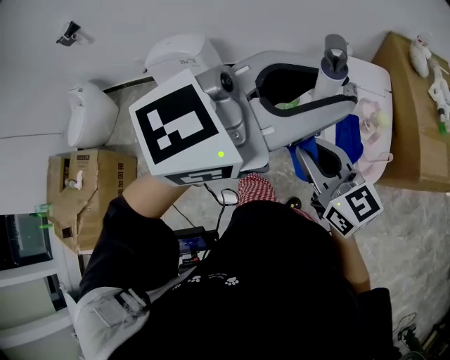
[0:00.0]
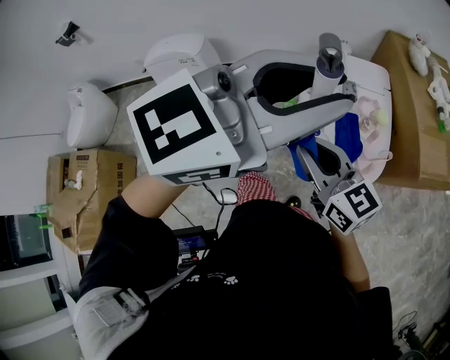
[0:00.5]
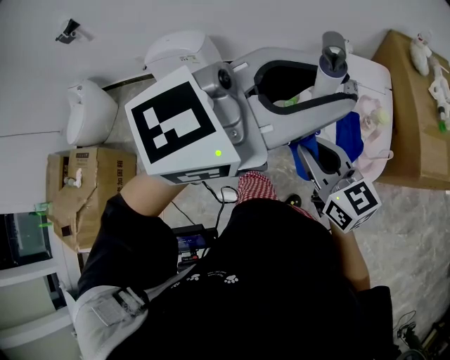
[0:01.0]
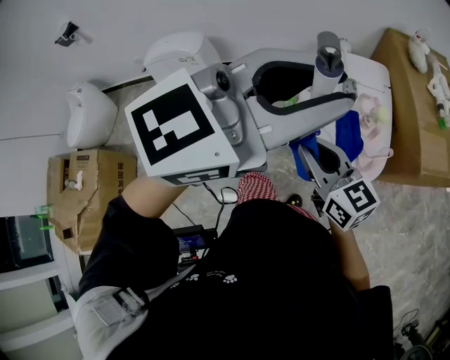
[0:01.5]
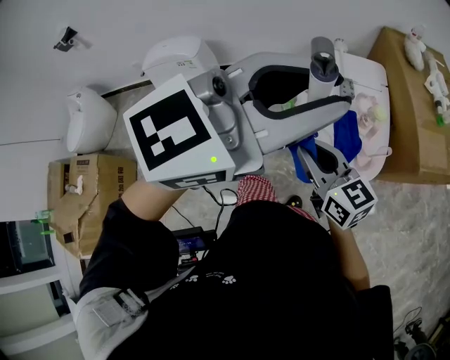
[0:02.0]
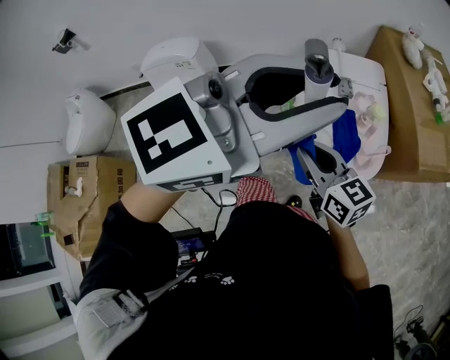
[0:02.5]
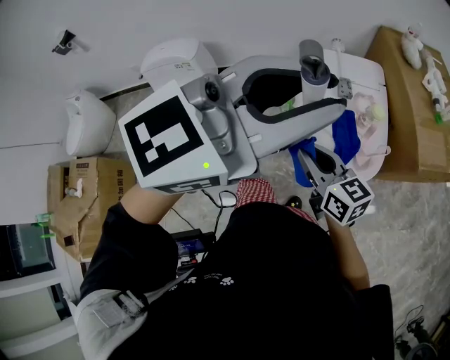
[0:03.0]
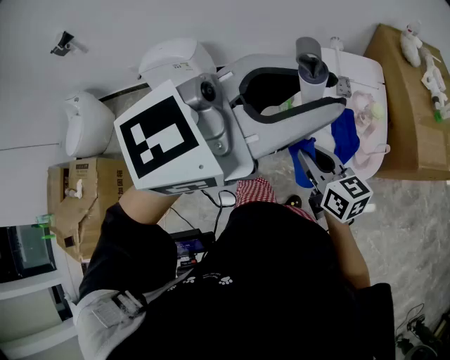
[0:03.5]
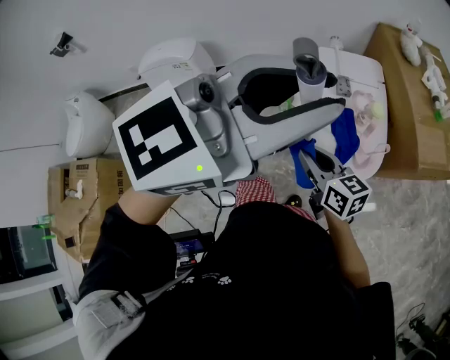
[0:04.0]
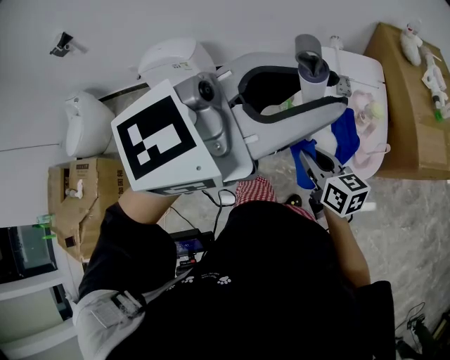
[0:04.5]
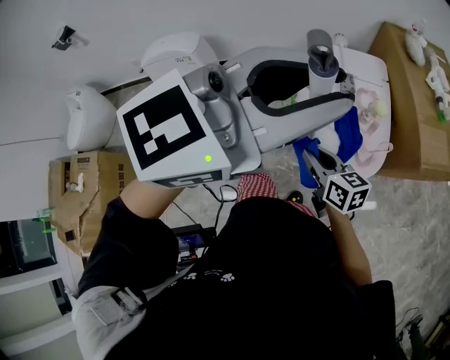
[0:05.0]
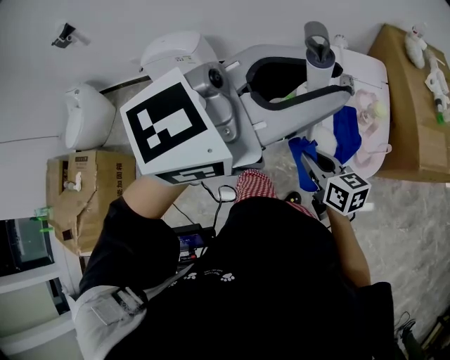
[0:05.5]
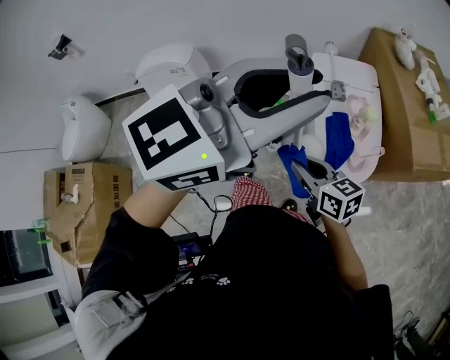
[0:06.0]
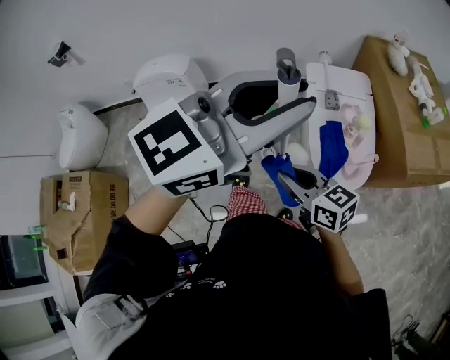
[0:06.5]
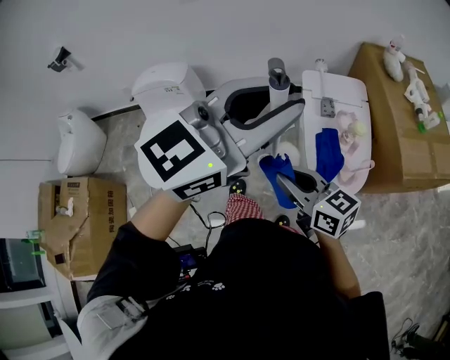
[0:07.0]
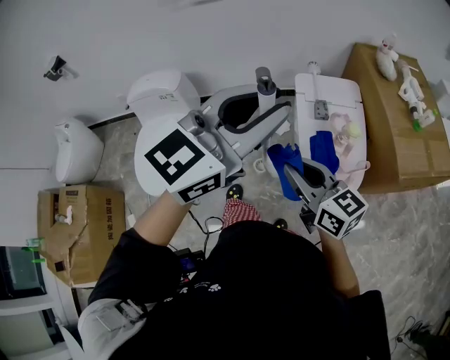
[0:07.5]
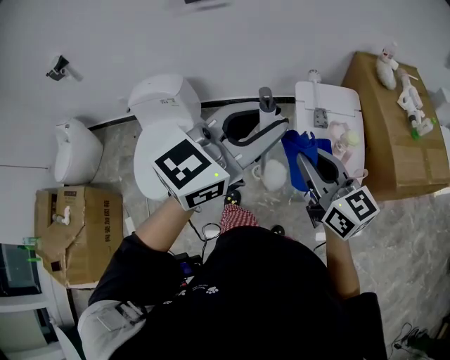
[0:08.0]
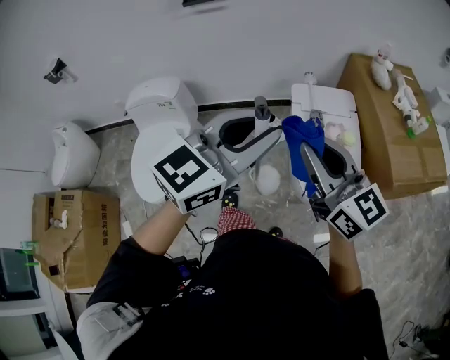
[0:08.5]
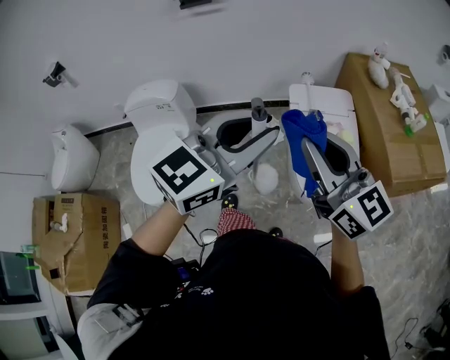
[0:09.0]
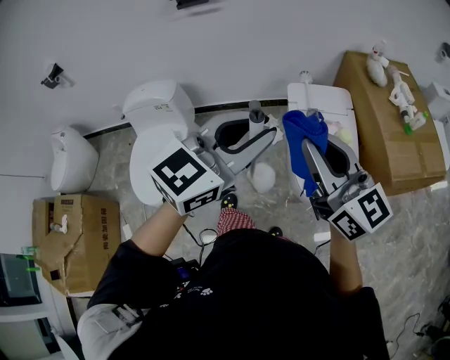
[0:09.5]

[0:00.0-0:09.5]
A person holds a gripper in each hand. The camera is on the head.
0:00.0 to 0:02.0: There are only small adjustments of the grippers.
0:02.0 to 0:04.0: The right gripper shifts roughly 5 cm downward.
0:04.0 to 0:05.5: There are only small adjustments of the grippers.
0:05.5 to 0:07.5: The right gripper shifts about 15 cm upward, and rotates some 20 degrees.
0:07.5 to 0:09.5: The right gripper shifts about 15 cm upward, and changes its angle by about 20 degrees.

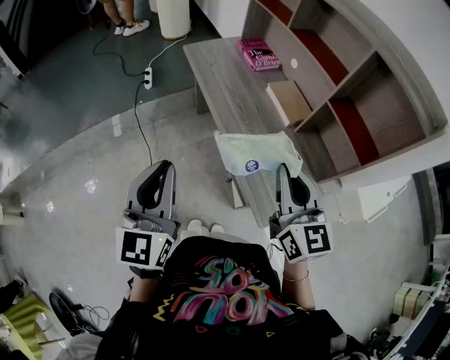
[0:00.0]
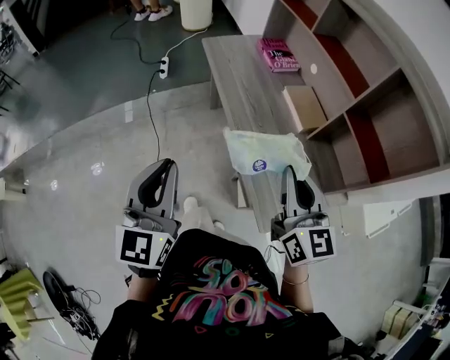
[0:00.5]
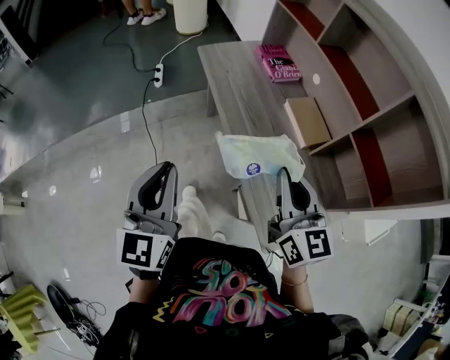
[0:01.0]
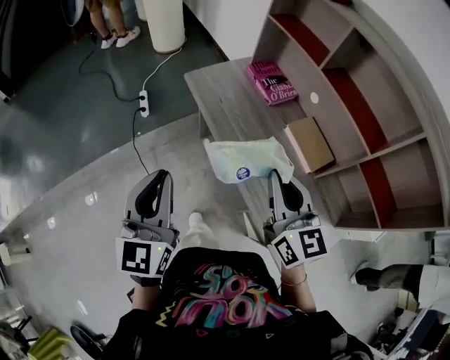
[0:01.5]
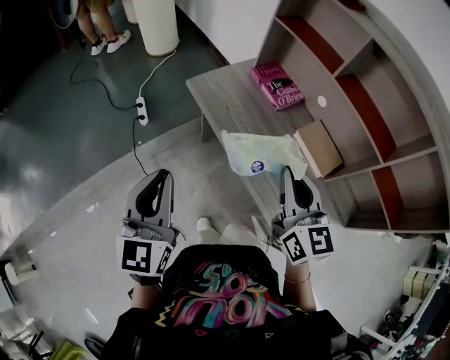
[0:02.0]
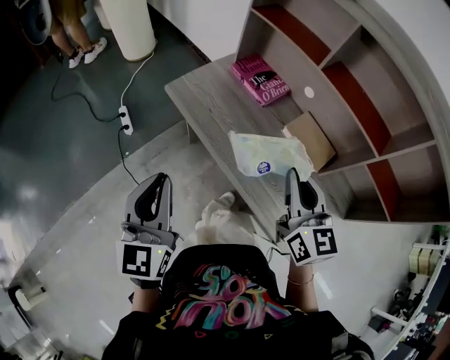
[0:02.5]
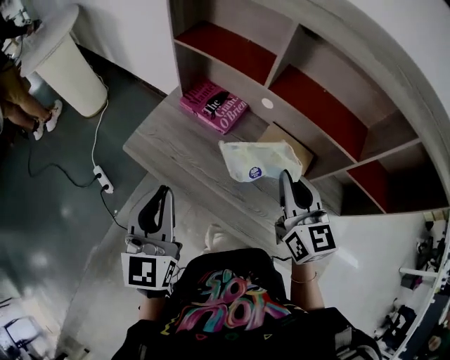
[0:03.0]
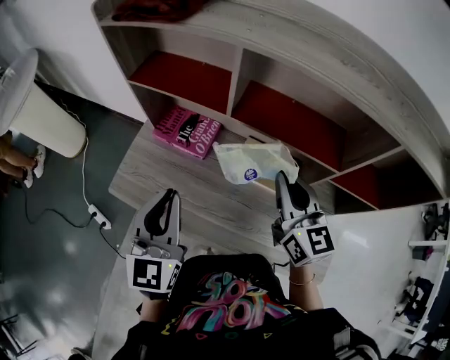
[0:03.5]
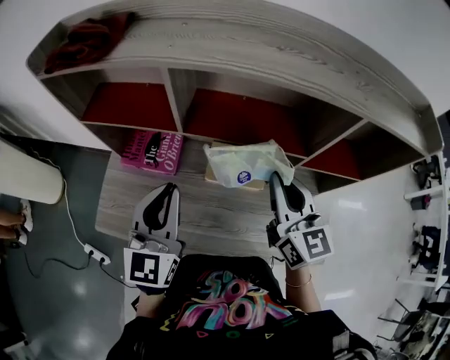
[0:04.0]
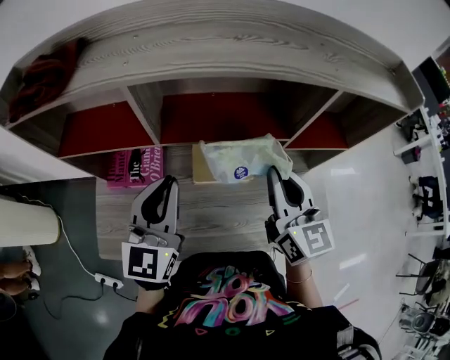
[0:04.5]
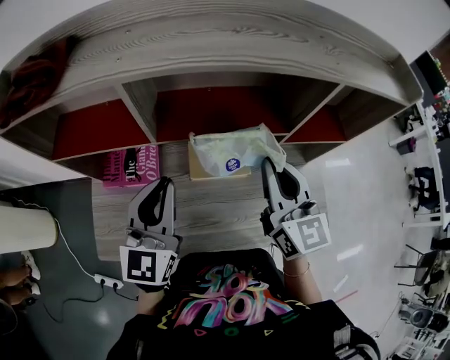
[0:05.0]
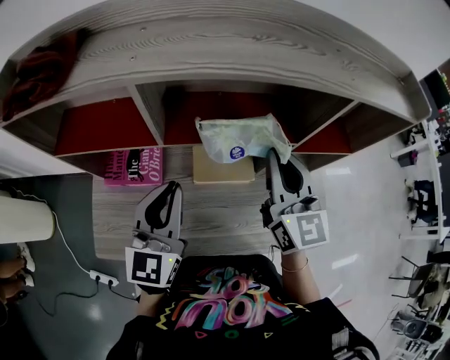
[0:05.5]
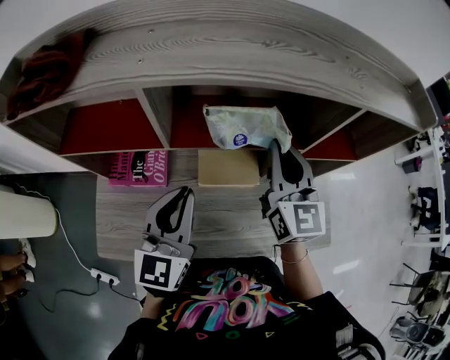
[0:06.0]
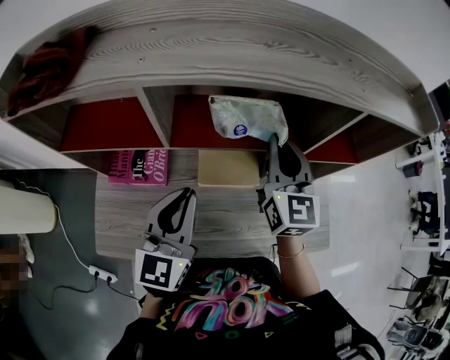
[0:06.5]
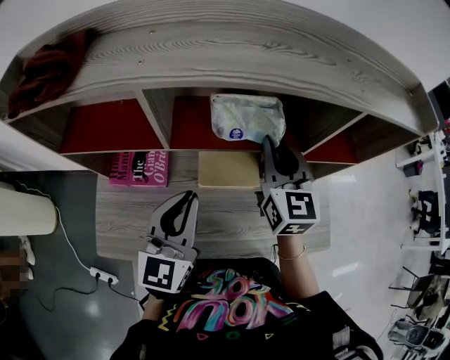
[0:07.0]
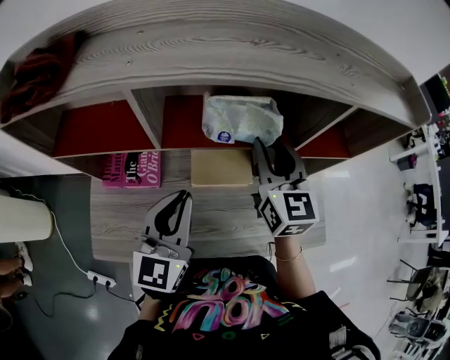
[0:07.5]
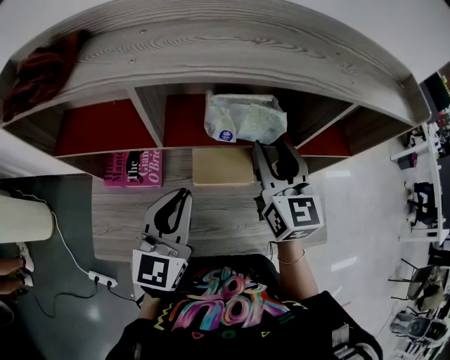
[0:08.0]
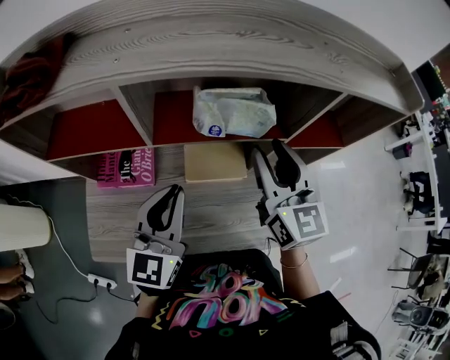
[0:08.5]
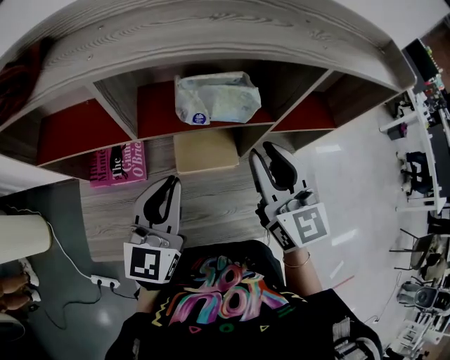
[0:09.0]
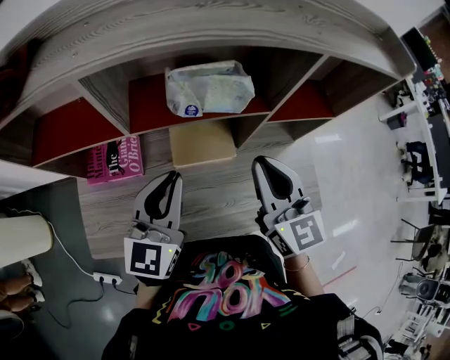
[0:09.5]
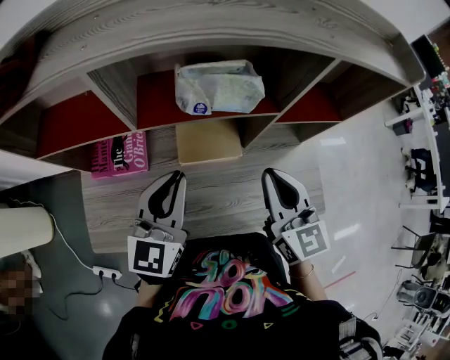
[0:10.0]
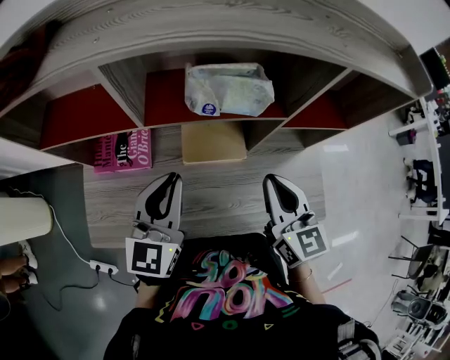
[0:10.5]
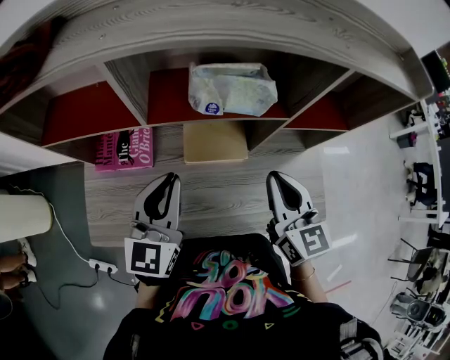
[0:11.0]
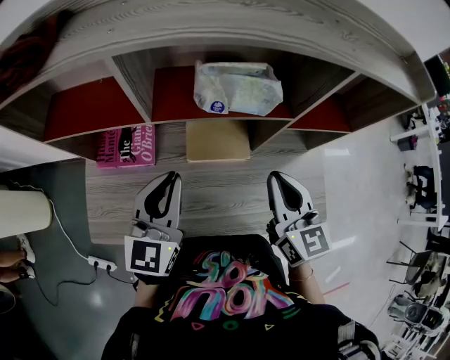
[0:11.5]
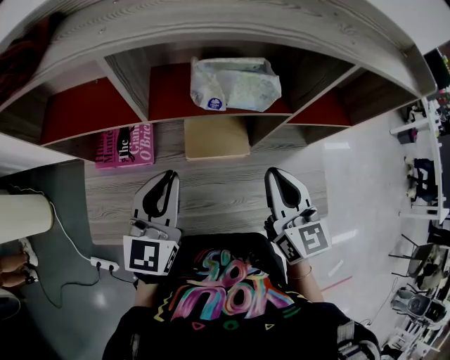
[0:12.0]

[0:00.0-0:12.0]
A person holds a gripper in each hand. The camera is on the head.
0:00.0 to 0:02.0: Both grippers travel together forward and to the left, roughly 35 cm.
0:02.0 to 0:04.0: The left gripper ends up some 40 cm from where it was, and rotates some 50 degrees, while the right gripper changes place by some 25 cm, and turns by approximately 40 degrees.
0:04.0 to 0:06.0: The right gripper travels forward by some 5 cm, and changes its angle by some 20 degrees. The left gripper moves about 5 cm.
0:06.0 to 0:08.0: The right gripper opens its fingers.
0:08.0 to 0:10.0: The right gripper travels backward by about 10 cm, and closes up.
0:10.0 to 0:12.0: The grippers make only small movements.

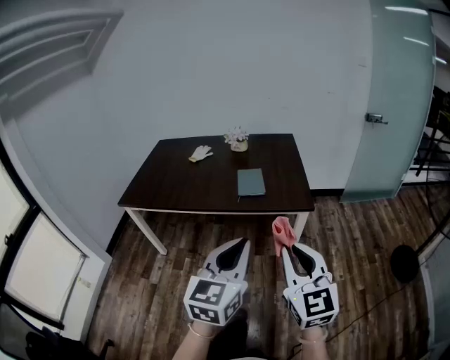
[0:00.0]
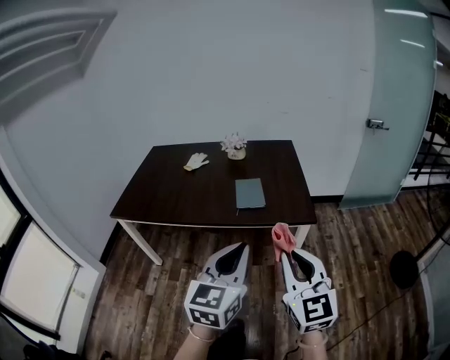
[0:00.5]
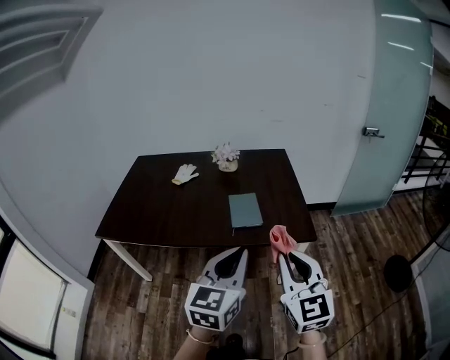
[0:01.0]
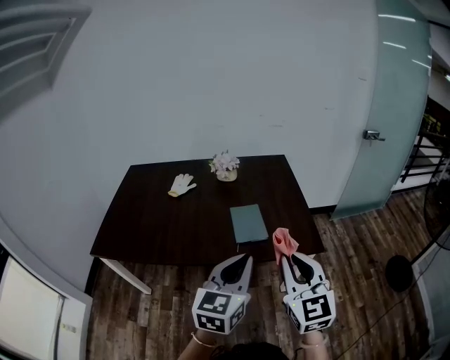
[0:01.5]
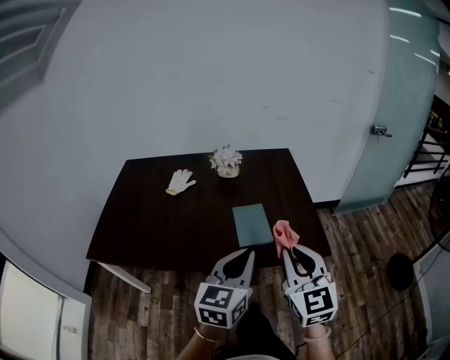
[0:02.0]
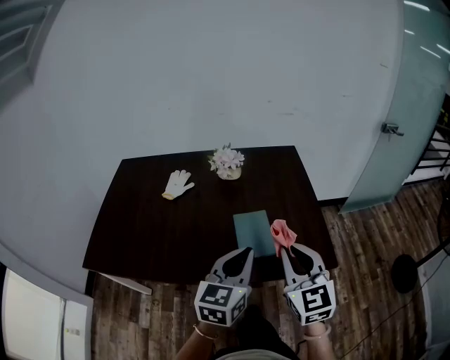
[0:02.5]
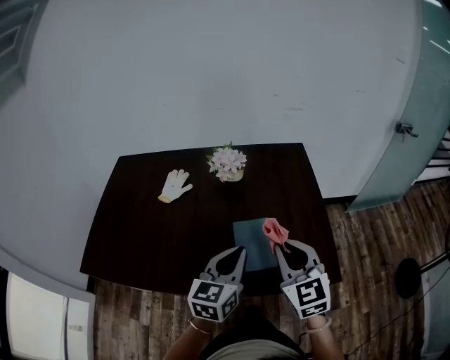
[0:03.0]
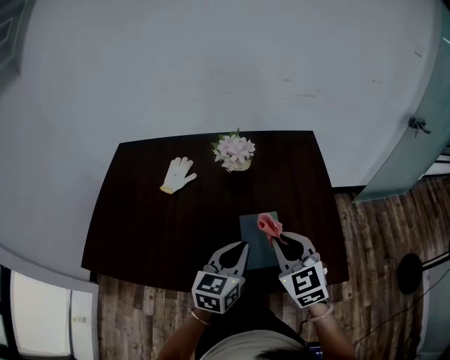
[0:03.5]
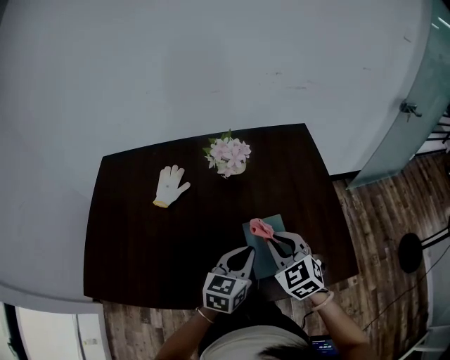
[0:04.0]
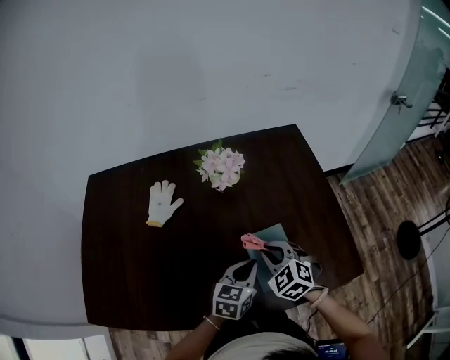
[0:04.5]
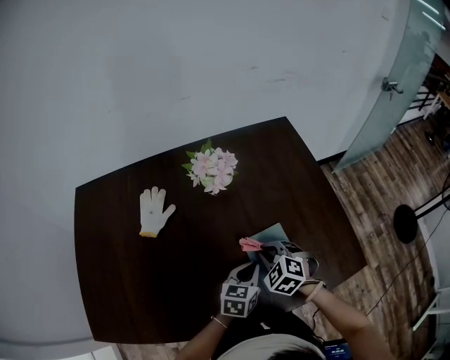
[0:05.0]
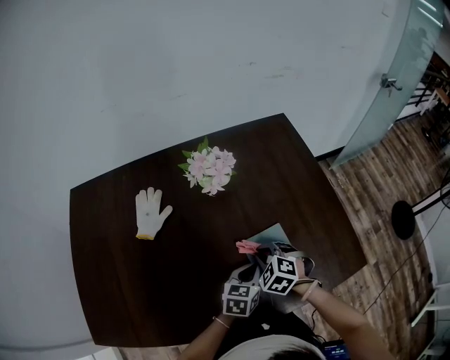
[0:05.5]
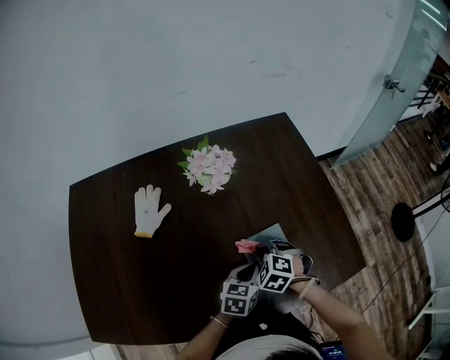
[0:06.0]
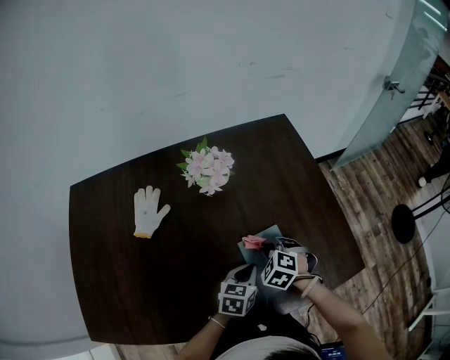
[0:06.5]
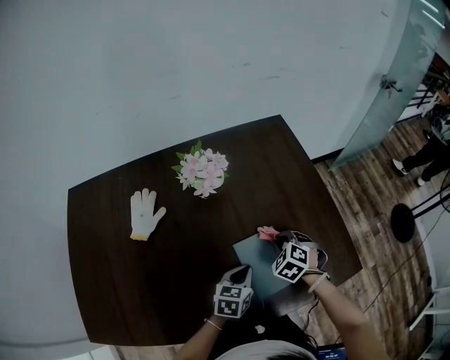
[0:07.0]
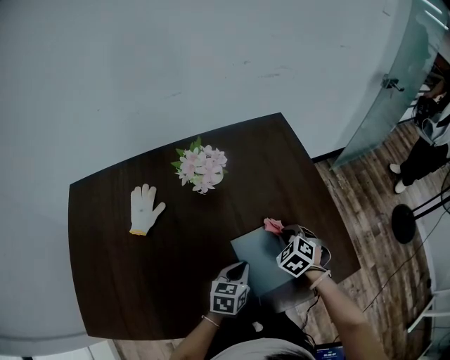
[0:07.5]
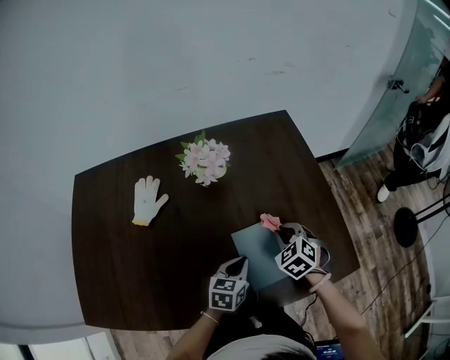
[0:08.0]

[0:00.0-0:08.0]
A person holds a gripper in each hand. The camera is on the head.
0:00.0 to 0:02.0: Both grippers move forward, some 40 cm.
0:02.0 to 0:04.0: Both grippers travel together forward and downward, approximately 35 cm. The right gripper changes its angle by about 30 degrees.
0:04.0 to 0:06.0: Both grippers move downward and forward, about 15 cm. The right gripper tips its fingers downward by roughly 30 degrees; the left gripper turns by some 20 degrees.
0:06.0 to 0:08.0: The right gripper moves to the right, about 10 cm.
